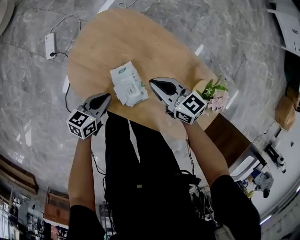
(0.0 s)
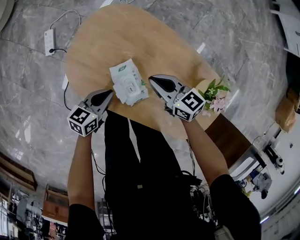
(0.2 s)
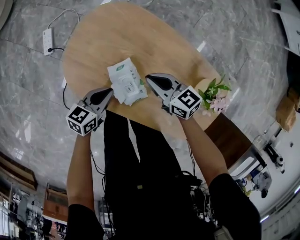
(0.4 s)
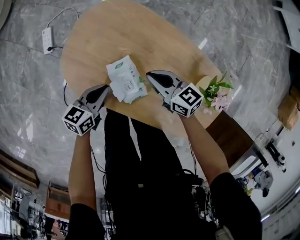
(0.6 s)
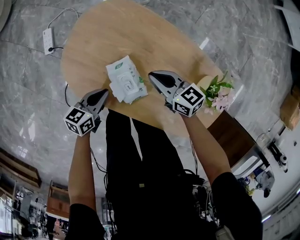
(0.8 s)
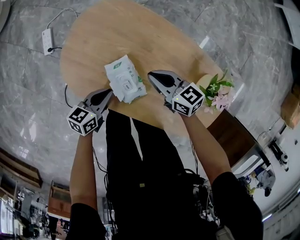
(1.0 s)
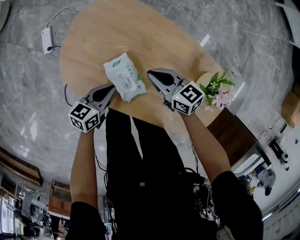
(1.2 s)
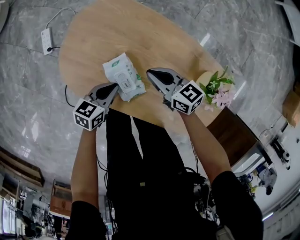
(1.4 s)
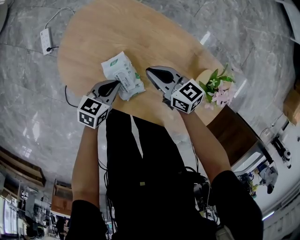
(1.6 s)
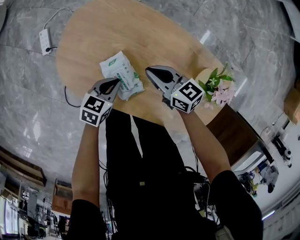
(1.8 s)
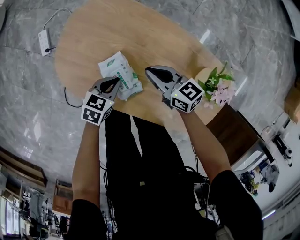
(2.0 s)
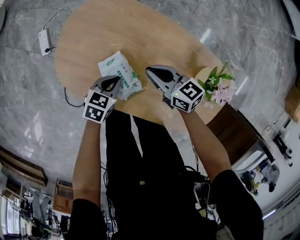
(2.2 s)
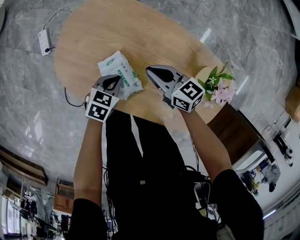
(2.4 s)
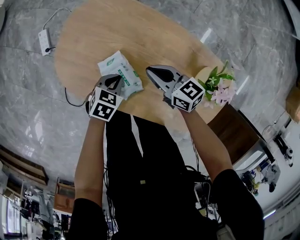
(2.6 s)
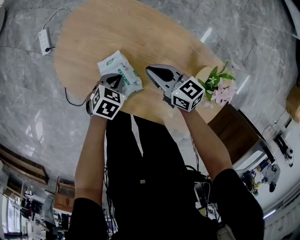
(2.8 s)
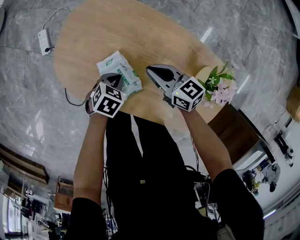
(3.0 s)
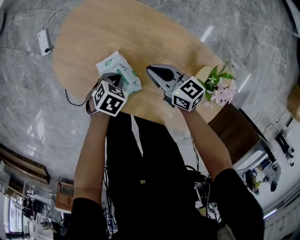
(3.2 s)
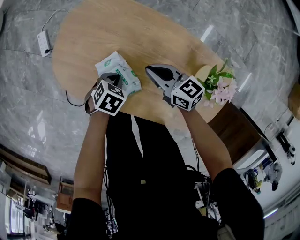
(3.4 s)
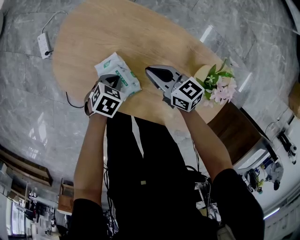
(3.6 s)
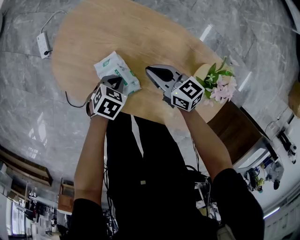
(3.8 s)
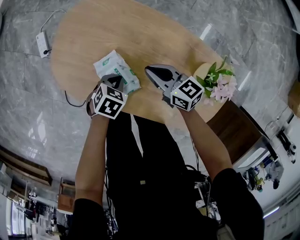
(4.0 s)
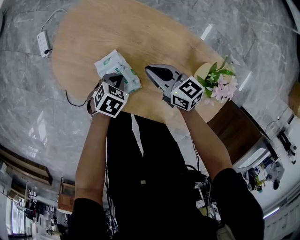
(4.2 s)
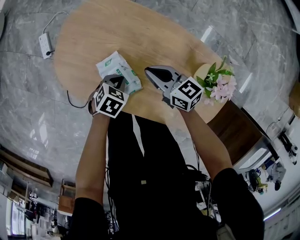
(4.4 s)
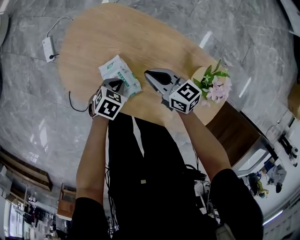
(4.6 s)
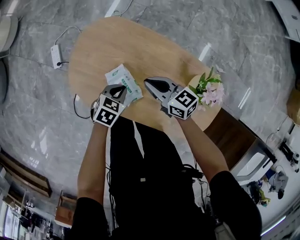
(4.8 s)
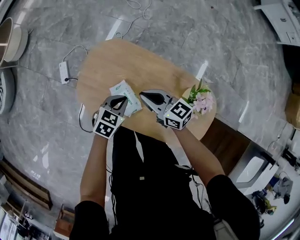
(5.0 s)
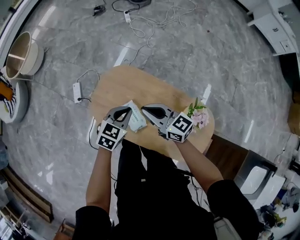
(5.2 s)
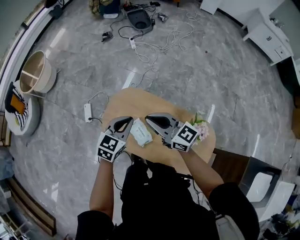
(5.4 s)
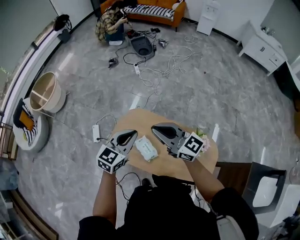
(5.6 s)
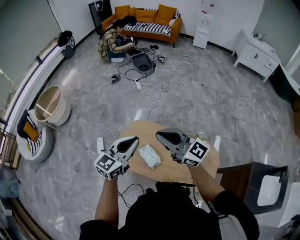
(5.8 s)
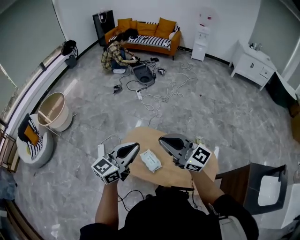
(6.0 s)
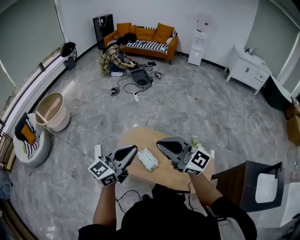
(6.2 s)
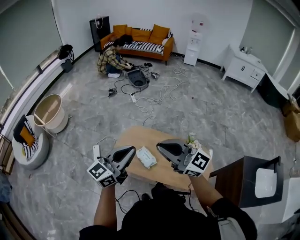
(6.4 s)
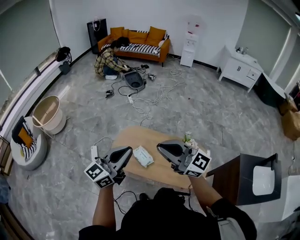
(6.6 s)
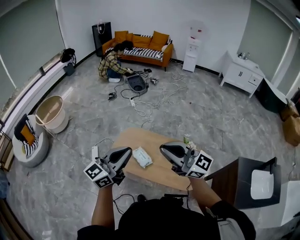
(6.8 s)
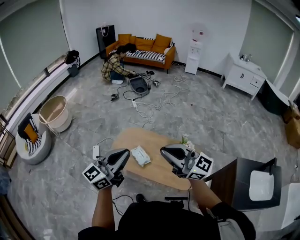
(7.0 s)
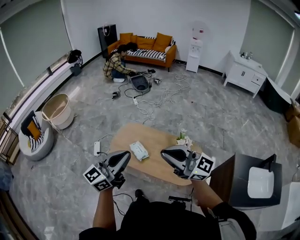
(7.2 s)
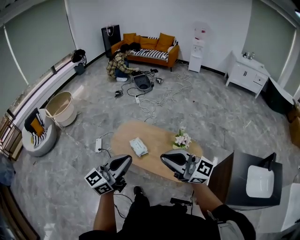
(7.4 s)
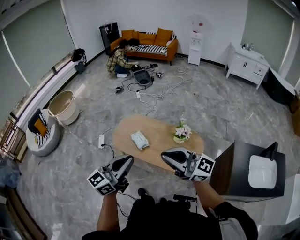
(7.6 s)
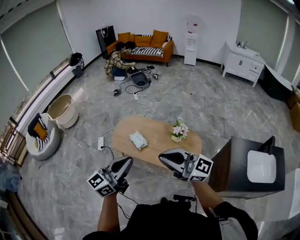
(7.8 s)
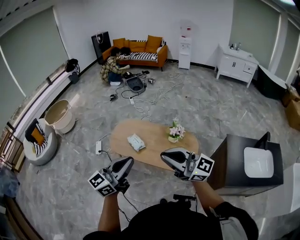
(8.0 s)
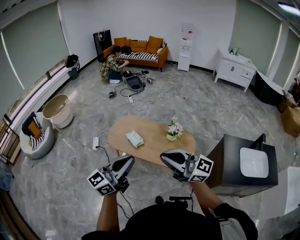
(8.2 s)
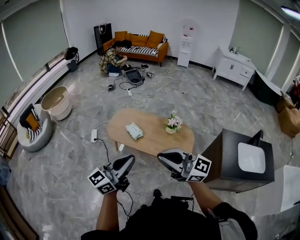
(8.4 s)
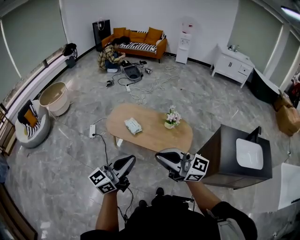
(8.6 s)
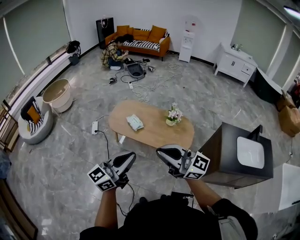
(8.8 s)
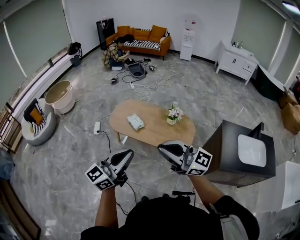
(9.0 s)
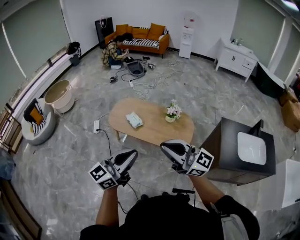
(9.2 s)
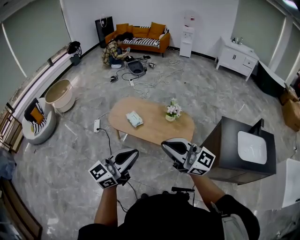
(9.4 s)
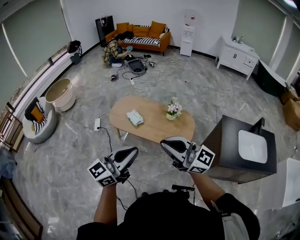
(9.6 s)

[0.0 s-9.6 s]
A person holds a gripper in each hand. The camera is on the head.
0.0 to 1.6 s: The left gripper moves to the right, approximately 5 cm, while the right gripper is displaced downward by some 5 cm.
1.6 to 3.2 s: The left gripper turns by approximately 30 degrees.
3.2 to 4.8 s: The grippers both shift upward by about 10 cm.
4.8 to 6.4 s: The right gripper goes some 60 cm upward and backward, and tilts its fingers approximately 30 degrees upward; the left gripper is displaced upward by some 60 cm, and angles its fingers upward, by roughly 70 degrees.
6.4 to 8.0 s: Both grippers move backward, approximately 35 cm.
8.0 to 9.6 s: The grippers both shift backward by about 15 cm.

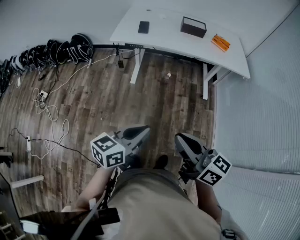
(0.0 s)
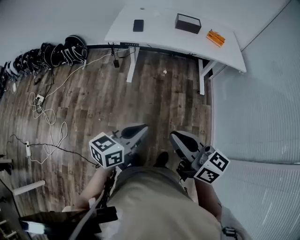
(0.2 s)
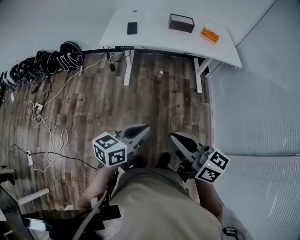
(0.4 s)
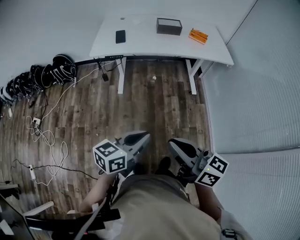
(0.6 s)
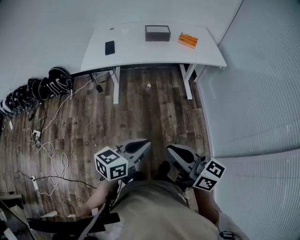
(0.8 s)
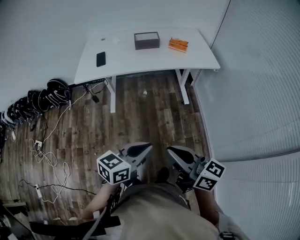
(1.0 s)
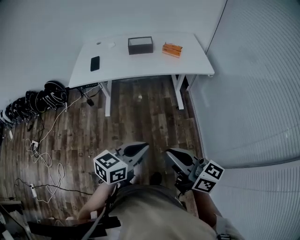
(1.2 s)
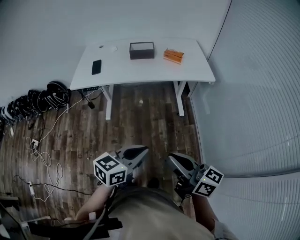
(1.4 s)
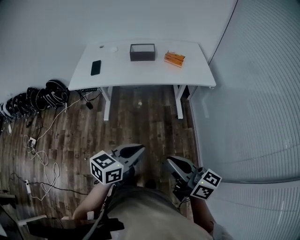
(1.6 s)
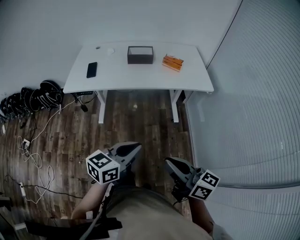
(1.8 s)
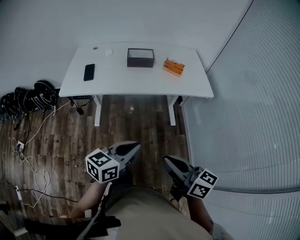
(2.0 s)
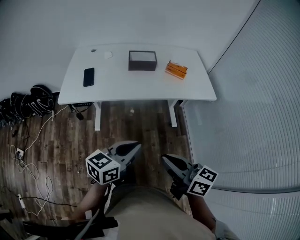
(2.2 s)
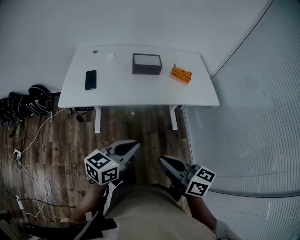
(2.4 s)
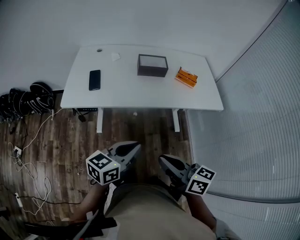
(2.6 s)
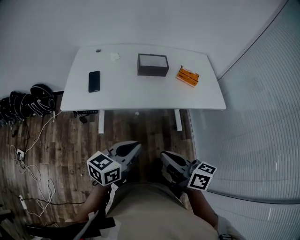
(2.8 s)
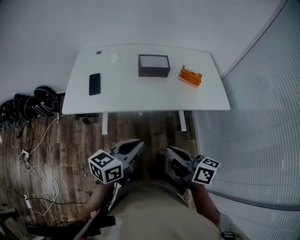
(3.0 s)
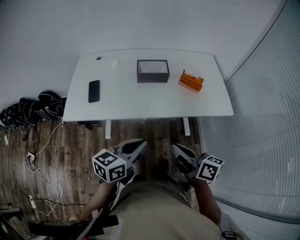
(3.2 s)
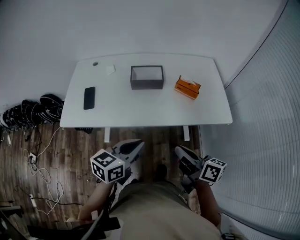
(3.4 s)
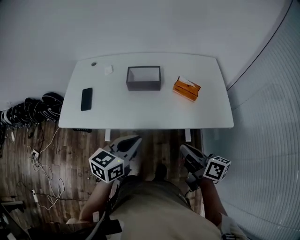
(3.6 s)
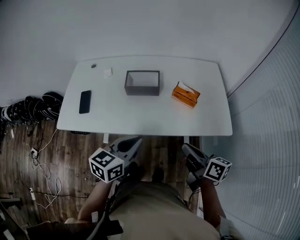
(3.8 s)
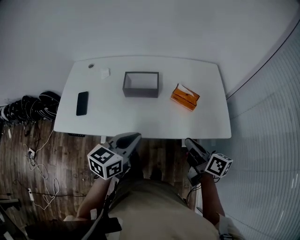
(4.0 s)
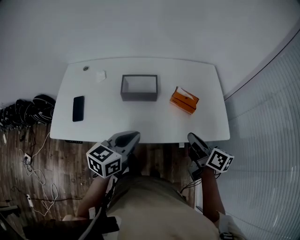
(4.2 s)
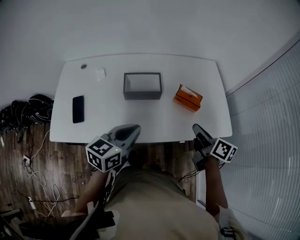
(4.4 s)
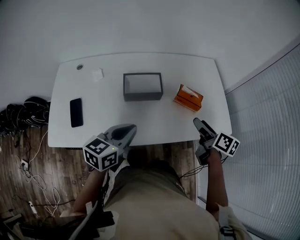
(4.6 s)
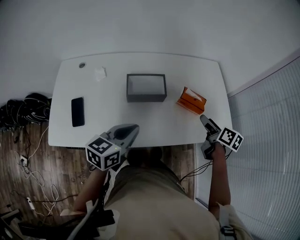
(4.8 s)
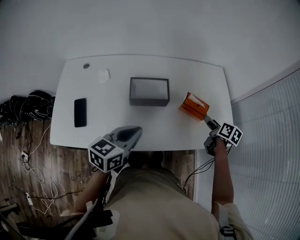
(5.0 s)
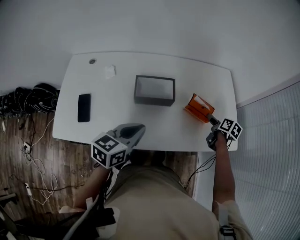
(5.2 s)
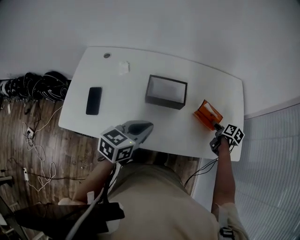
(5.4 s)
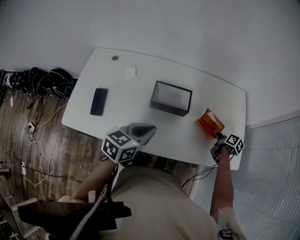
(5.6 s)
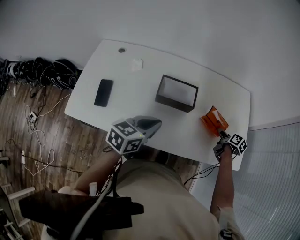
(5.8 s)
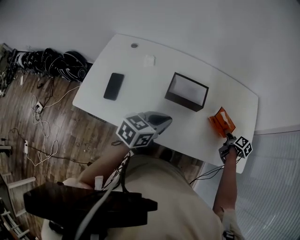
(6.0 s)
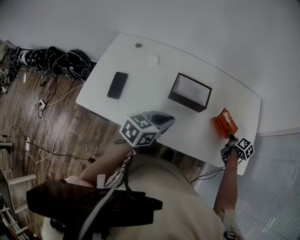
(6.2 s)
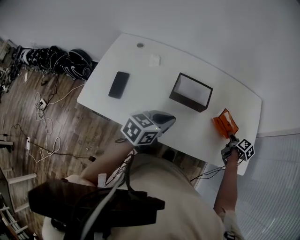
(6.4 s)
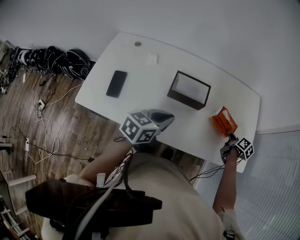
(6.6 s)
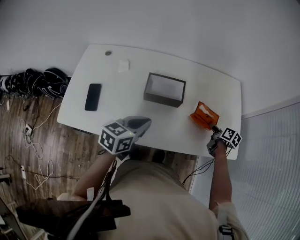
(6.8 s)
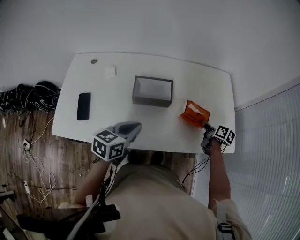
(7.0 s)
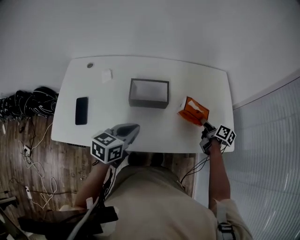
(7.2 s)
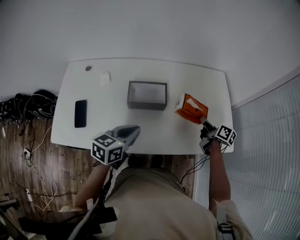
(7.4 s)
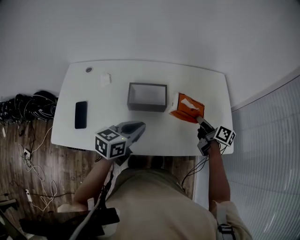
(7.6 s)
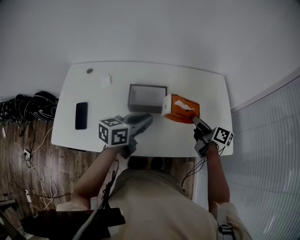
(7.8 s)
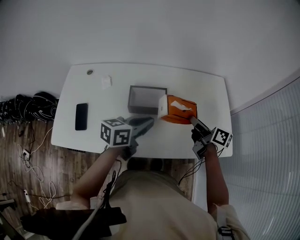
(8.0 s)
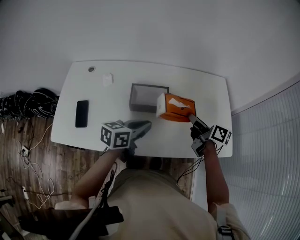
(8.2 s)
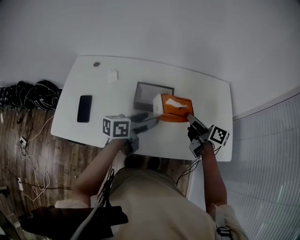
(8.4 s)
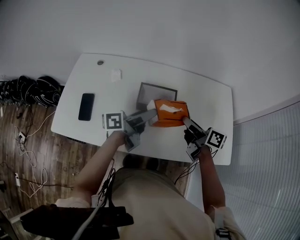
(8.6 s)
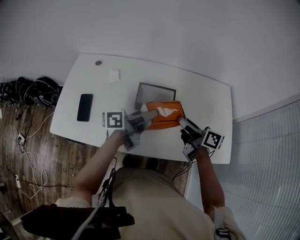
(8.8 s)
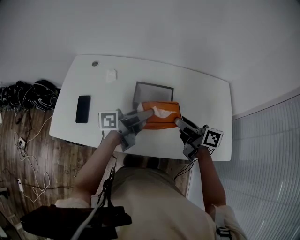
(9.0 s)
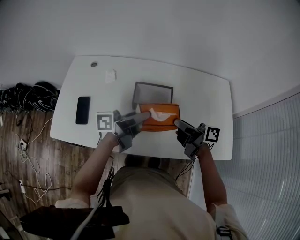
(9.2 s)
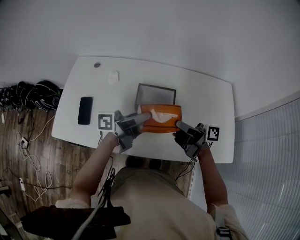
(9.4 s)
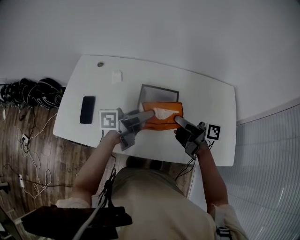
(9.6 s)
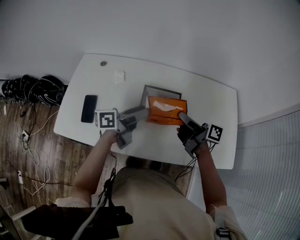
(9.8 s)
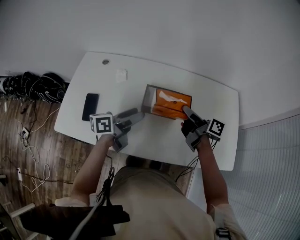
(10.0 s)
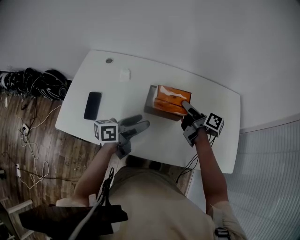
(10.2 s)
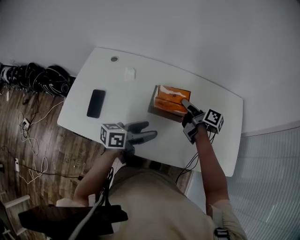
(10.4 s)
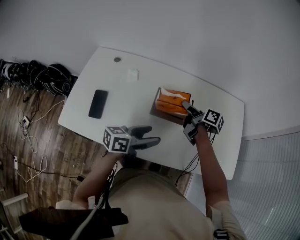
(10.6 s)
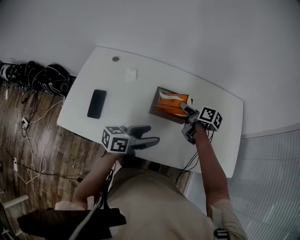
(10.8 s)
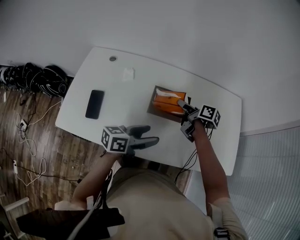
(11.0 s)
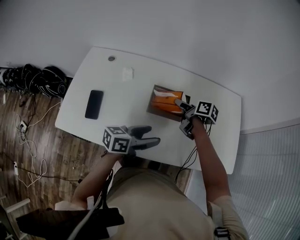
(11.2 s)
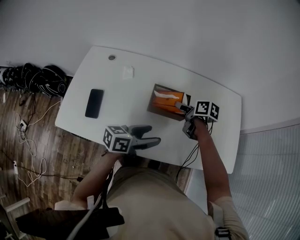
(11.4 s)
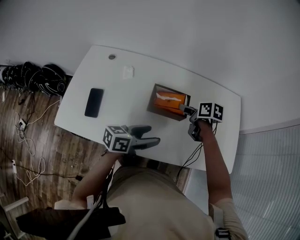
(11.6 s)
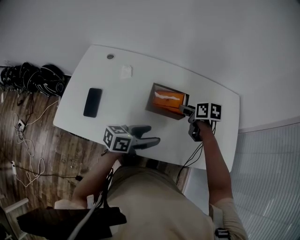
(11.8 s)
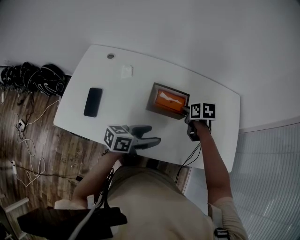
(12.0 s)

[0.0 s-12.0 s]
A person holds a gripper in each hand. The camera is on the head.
0.0 to 1.6 s: Both grippers move to the right and forward, roughly 25 cm.
1.6 to 3.0 s: The grippers both shift forward and to the left by roughly 35 cm.
3.0 to 4.4 s: The right gripper shifts about 40 cm forward and to the right, and changes its angle by roughly 20 degrees; the left gripper goes approximately 30 cm forward.
4.4 to 6.0 s: The right gripper goes some 25 cm forward and downward, turns by roughly 30 degrees, and opens up; the left gripper goes roughly 10 cm forward and to the left.
6.0 to 7.6 s: The right gripper goes some 10 cm upward and to the left, and swivels some 30 degrees.
7.6 to 9.0 s: The left gripper travels upward by some 5 cm, points its fingers approximately 30 degrees further upward, and opens its fingers. The right gripper heads to the left and upward, covering about 15 cm, and swivels roughly 30 degrees.
9.0 to 10.4 s: The right gripper goes some 10 cm forward, and turns by approximately 20 degrees; the left gripper is displaced backward by approximately 10 cm, and changes its angle by about 30 degrees.
10.4 to 12.0 s: The right gripper heads downward, covering roughly 10 cm, tips its fingers downward by about 40 degrees, and closes; the left gripper travels downward by roughly 5 cm.

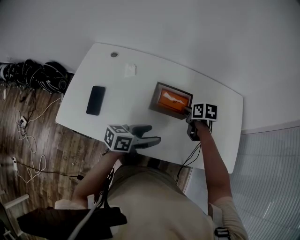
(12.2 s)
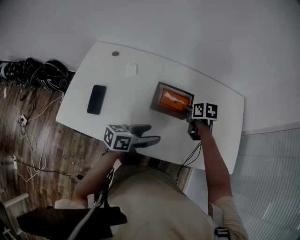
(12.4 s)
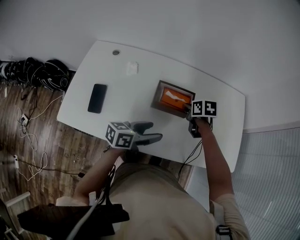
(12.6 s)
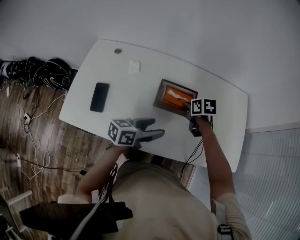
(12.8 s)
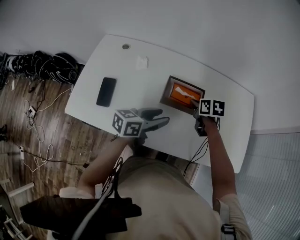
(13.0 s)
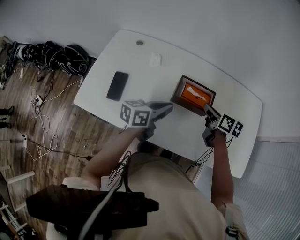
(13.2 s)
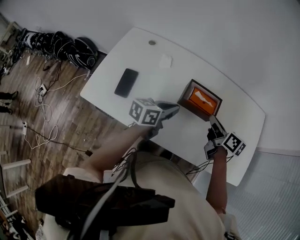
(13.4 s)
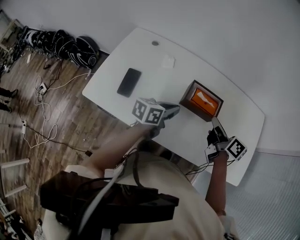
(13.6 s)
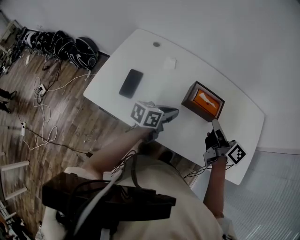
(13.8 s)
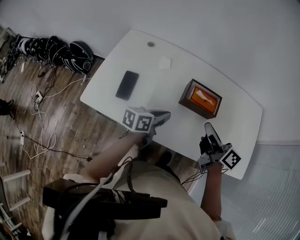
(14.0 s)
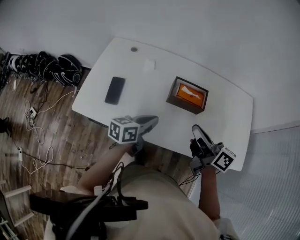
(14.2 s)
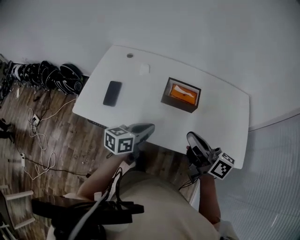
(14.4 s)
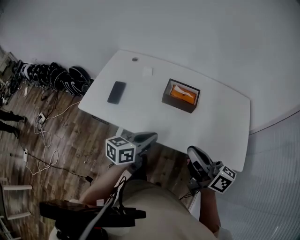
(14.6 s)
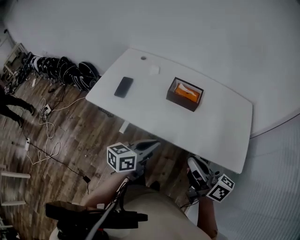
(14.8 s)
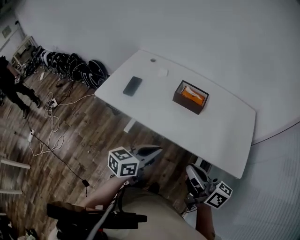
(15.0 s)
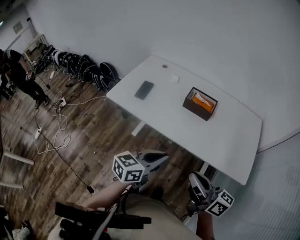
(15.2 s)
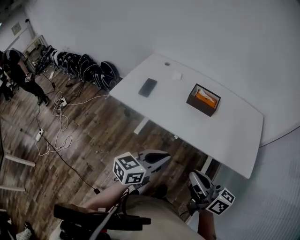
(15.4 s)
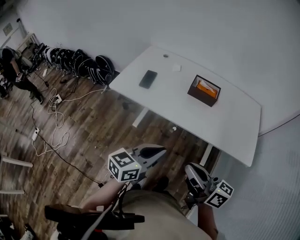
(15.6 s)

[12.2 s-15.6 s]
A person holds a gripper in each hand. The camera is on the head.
12.2 to 13.8 s: The right gripper shifts roughly 20 cm upward and backward, and angles its fingers upward, by some 40 degrees, while the left gripper shifts about 10 cm to the left, and closes up.
13.8 to 15.6 s: The two grippers travel together, backward, approximately 40 cm. The right gripper changes its angle by some 30 degrees, while the left gripper turns by about 20 degrees.
